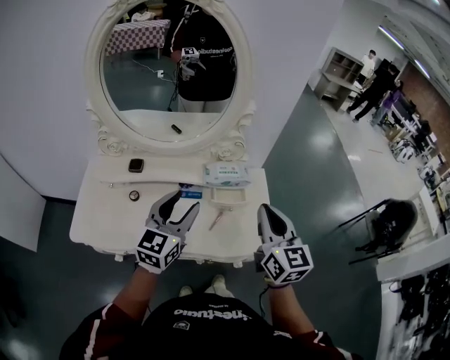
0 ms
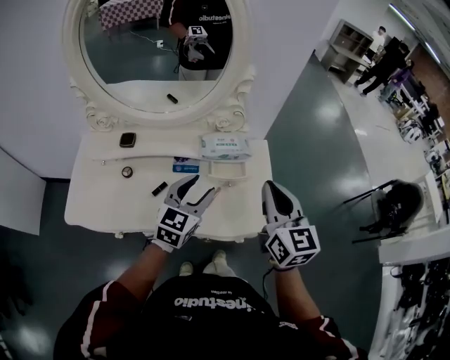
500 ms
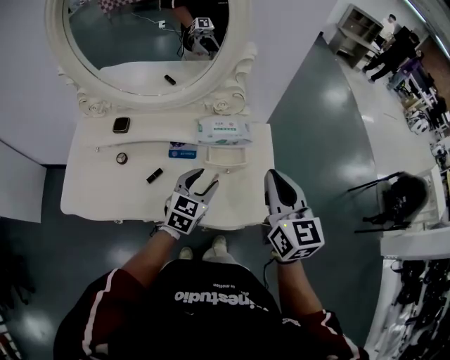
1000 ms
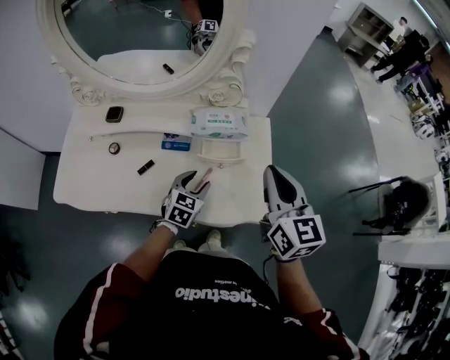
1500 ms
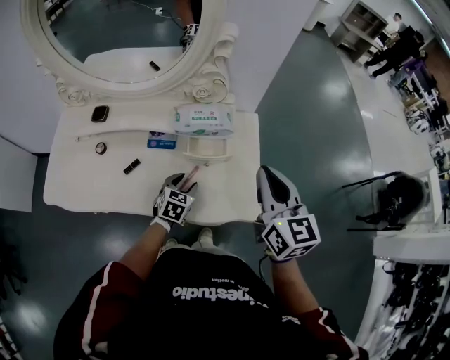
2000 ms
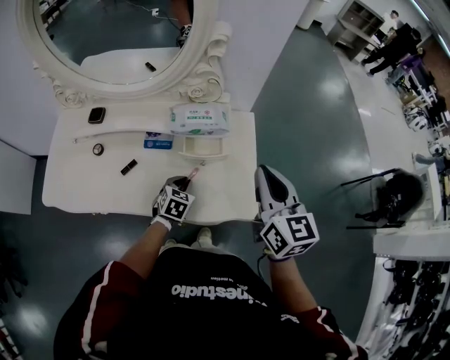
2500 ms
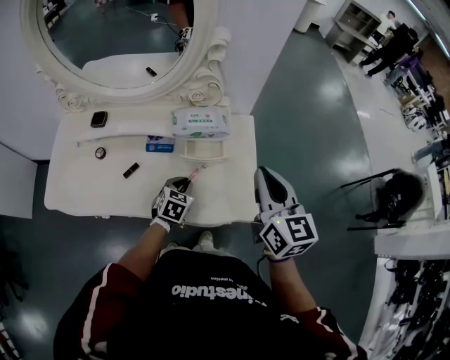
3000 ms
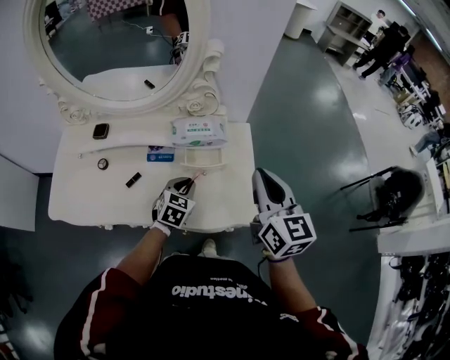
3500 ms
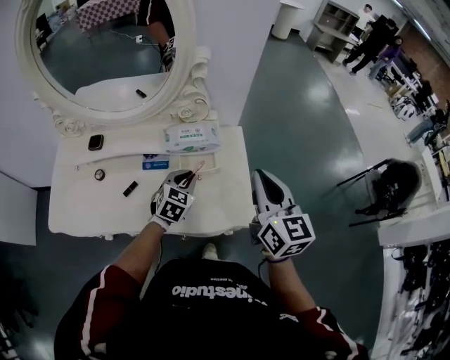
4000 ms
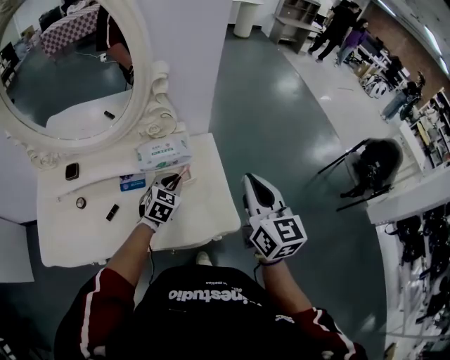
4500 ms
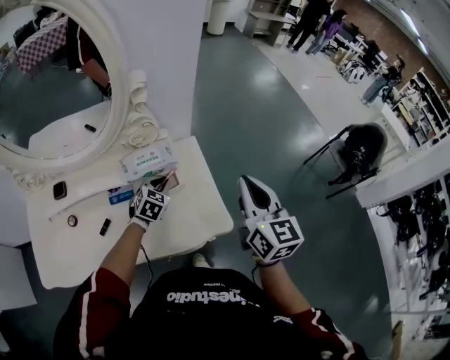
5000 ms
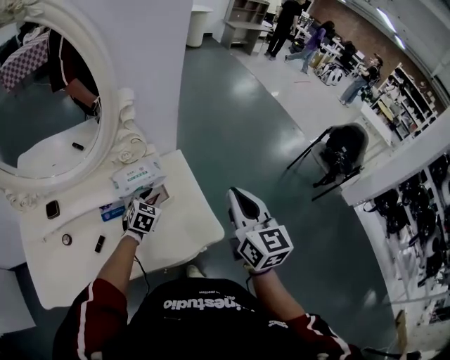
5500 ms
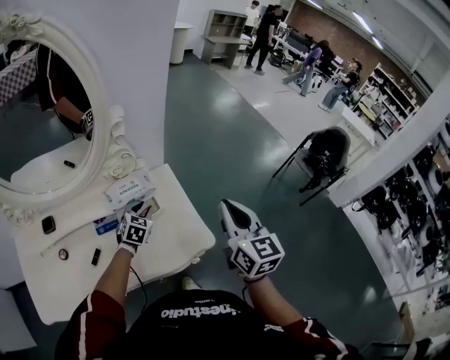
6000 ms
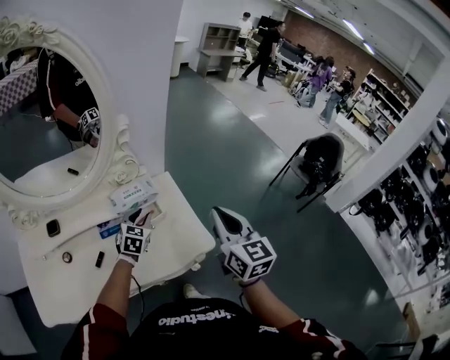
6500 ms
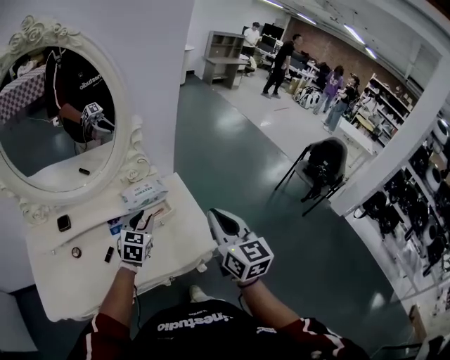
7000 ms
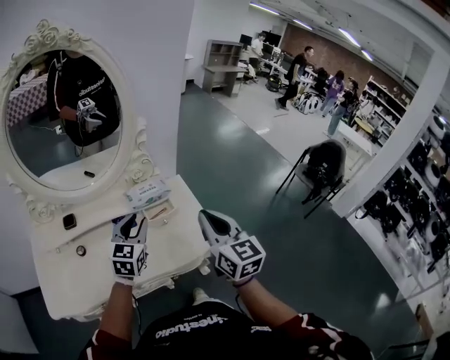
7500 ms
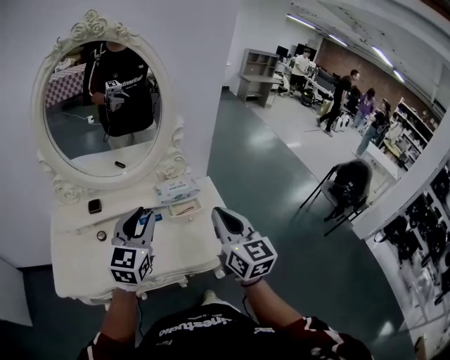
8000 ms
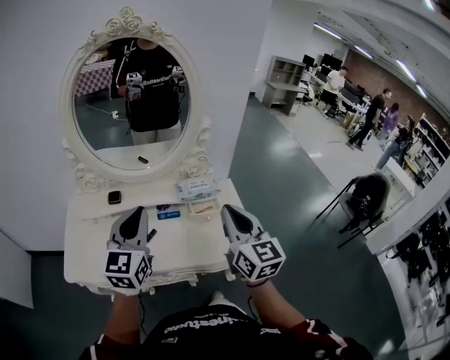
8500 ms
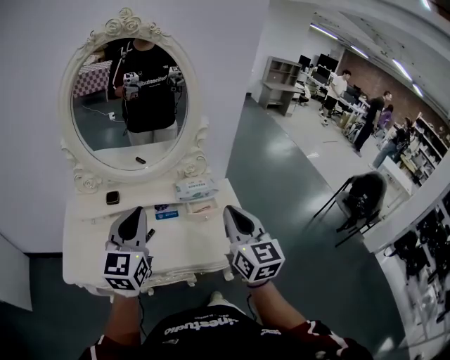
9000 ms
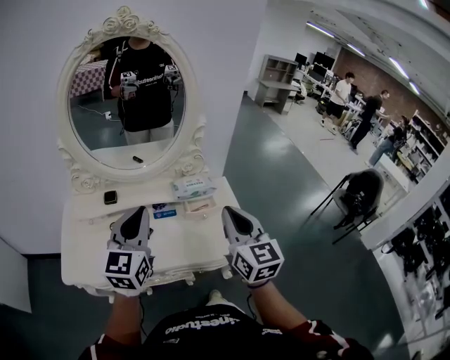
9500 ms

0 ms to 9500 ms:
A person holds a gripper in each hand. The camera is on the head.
0 ms to 2000 ms: The left gripper heads downward, covering roughly 35 cm, and points its fingers approximately 40 degrees further downward. The right gripper moves to the right, downward and forward, roughly 15 cm.
2000 ms to 4000 ms: The left gripper heads upward, covering about 10 cm, and closes.
4000 ms to 5500 ms: The left gripper heads forward, covering some 10 cm. The right gripper moves to the right, approximately 5 cm.
5500 ms to 7500 ms: The left gripper heads upward and backward, covering about 25 cm, and turns by some 30 degrees. The right gripper travels backward and to the left by roughly 15 cm.
7500 ms to 9500 ms: The left gripper goes roughly 20 cm upward, to the left and backward, turns by roughly 20 degrees, and closes; the right gripper travels to the left by roughly 5 cm.

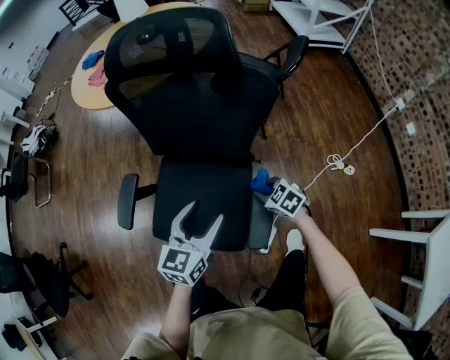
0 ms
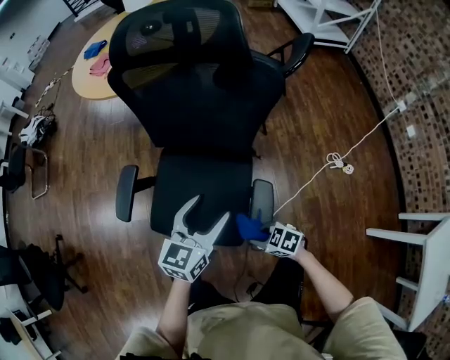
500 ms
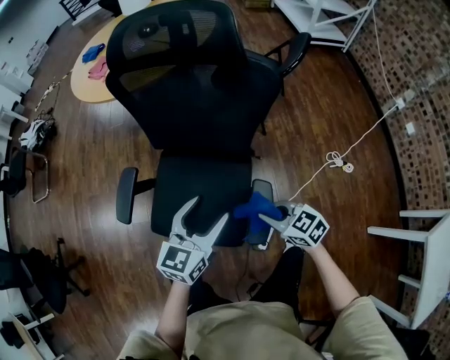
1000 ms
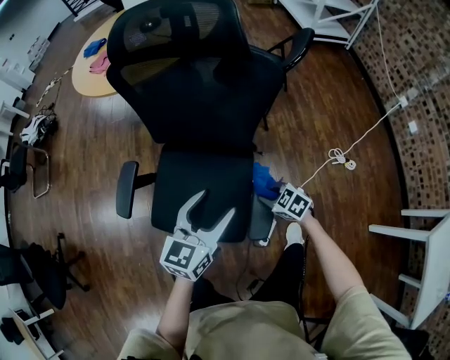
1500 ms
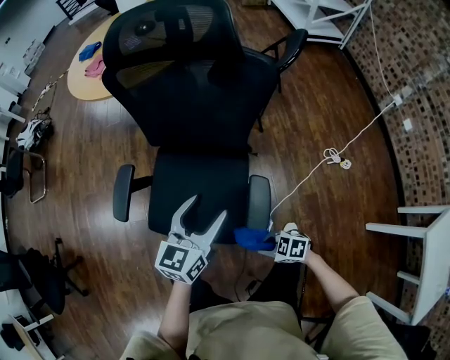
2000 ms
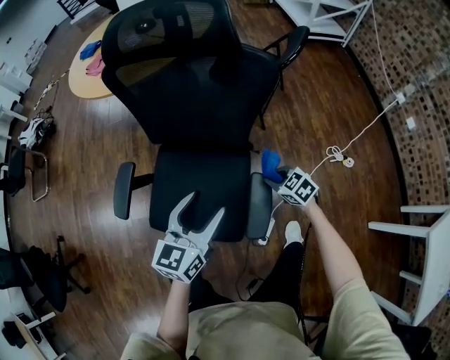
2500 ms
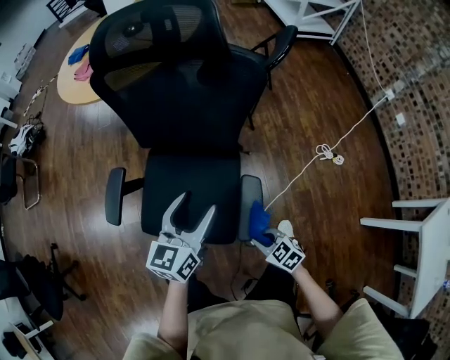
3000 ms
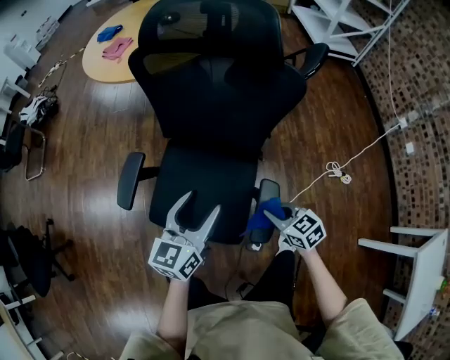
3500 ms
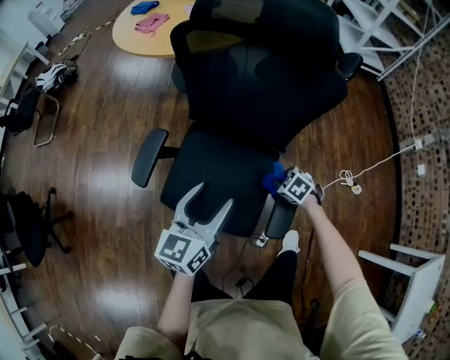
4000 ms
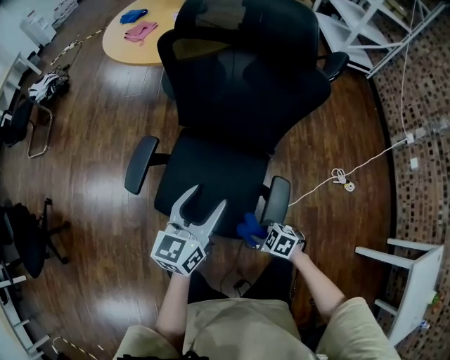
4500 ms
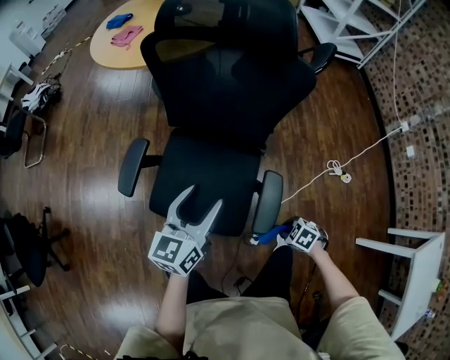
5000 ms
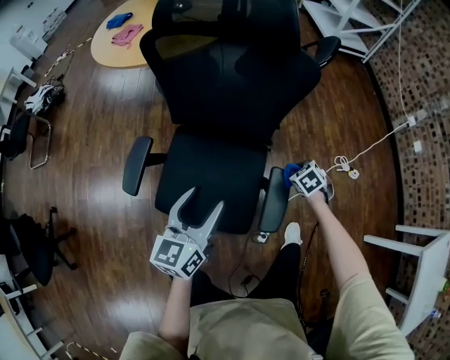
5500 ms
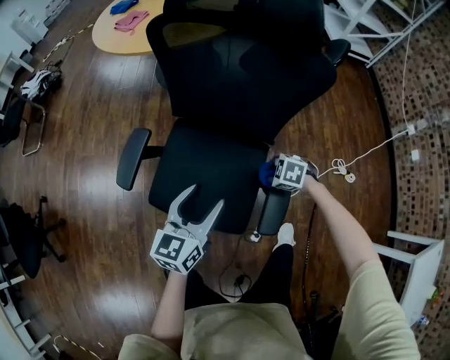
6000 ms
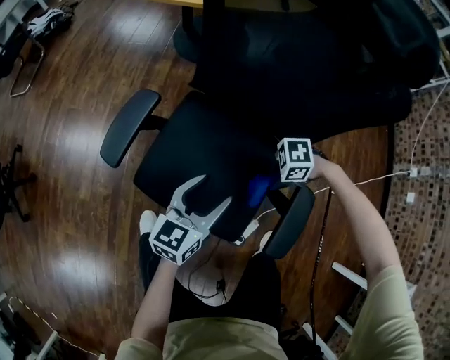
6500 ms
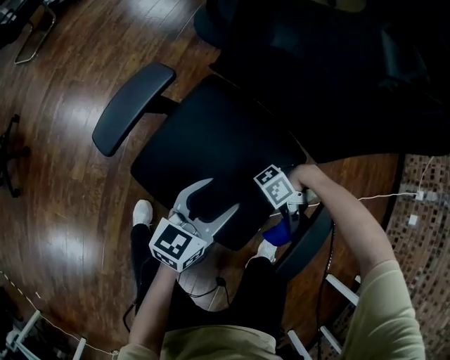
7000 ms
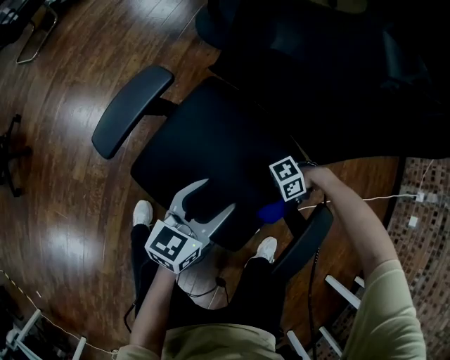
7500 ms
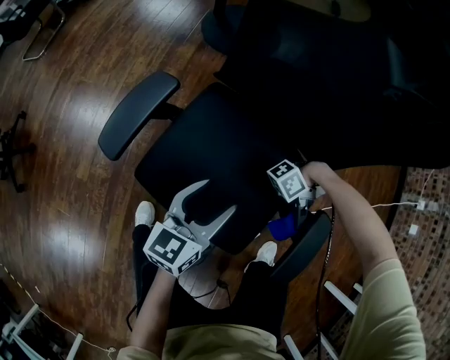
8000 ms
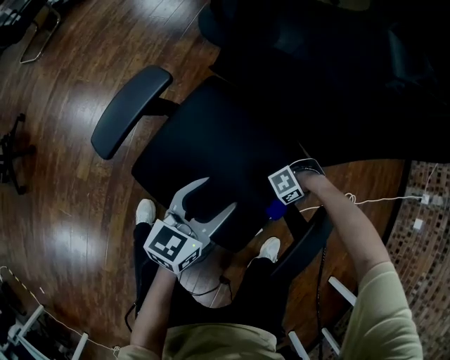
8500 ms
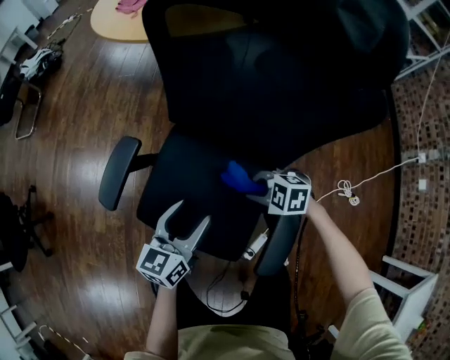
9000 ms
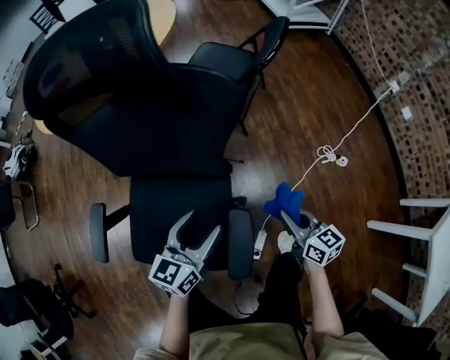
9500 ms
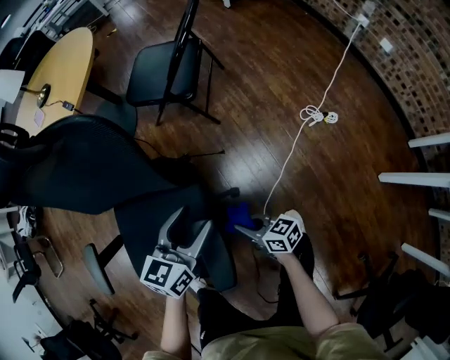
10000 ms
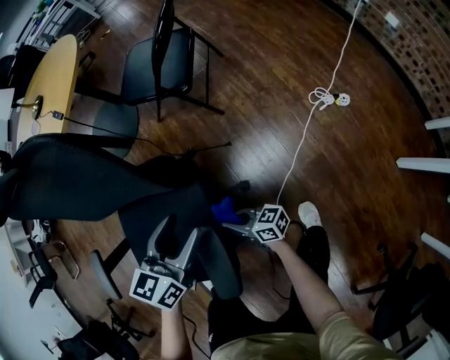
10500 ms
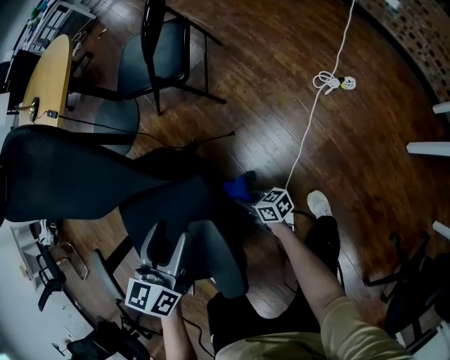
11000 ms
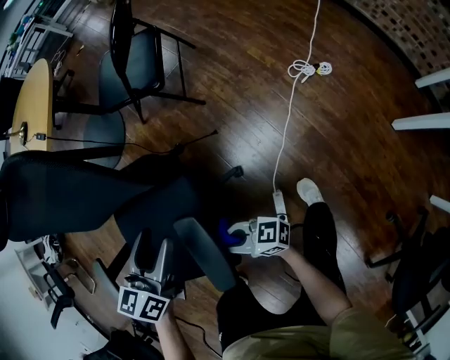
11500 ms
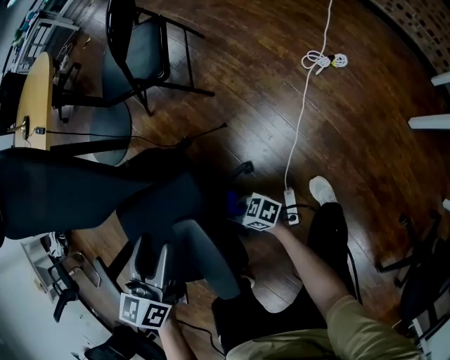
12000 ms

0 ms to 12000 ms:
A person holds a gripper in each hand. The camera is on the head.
0 ms to 2000 ms: The right gripper goes upward and returns, some 10 cm each way, and rotates approximately 30 degrees.
2000 ms to 4000 ms: The right gripper travels upward and back again, some 10 cm each way, and turns by approximately 30 degrees, while the left gripper ends up approximately 10 cm from where it was.
4000 ms to 6000 ms: The left gripper moves roughly 5 cm.
6000 ms to 8000 ms: The left gripper is displaced downward by approximately 15 cm. The right gripper angles its fingers upward, by about 70 degrees.
8000 ms to 10000 ms: The left gripper ends up roughly 35 cm from where it was, and changes its angle by approximately 40 degrees; the right gripper swings up and down, roughly 30 cm each way, with 2 reversals, and swivels about 160 degrees.
10000 ms to 12000 ms: The right gripper moves up and down over some 20 cm, changing direction 2 times, while the left gripper heads to the left, covering roughly 5 cm.

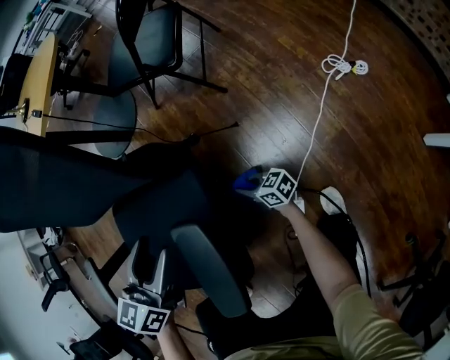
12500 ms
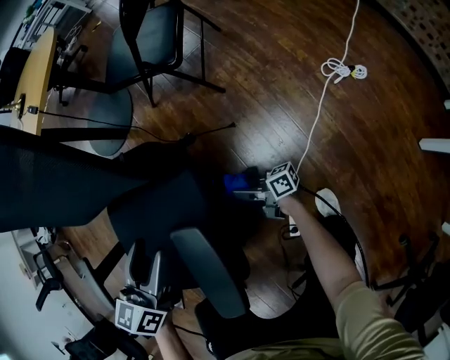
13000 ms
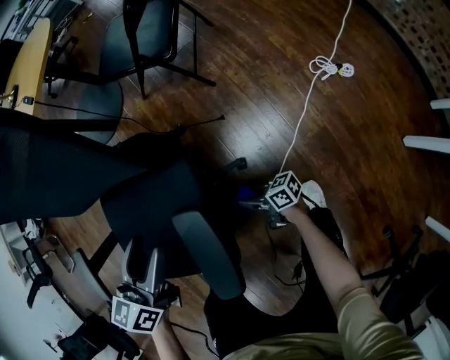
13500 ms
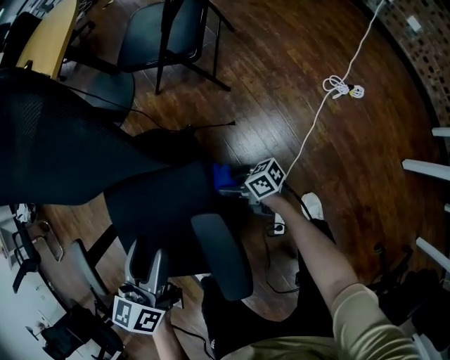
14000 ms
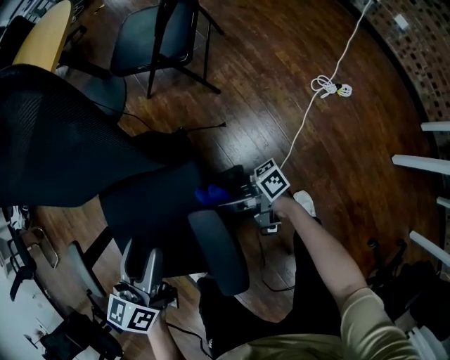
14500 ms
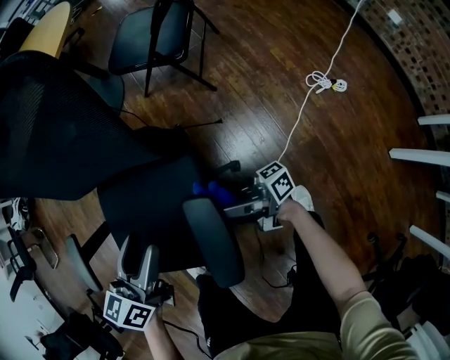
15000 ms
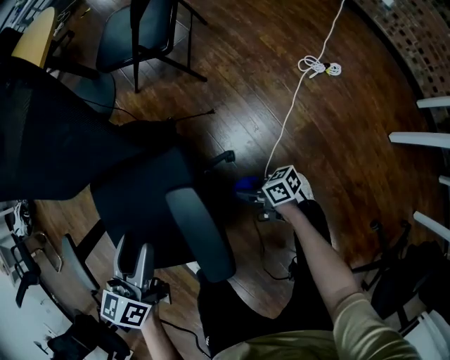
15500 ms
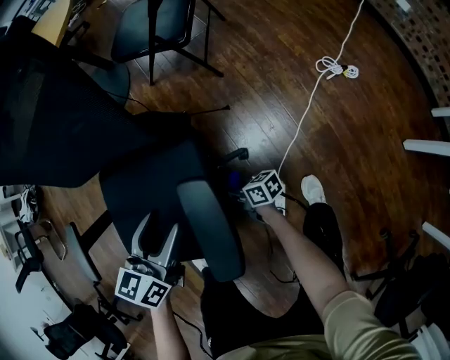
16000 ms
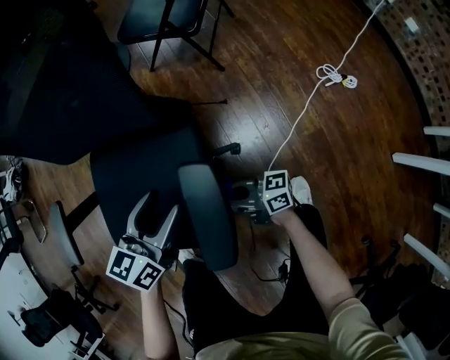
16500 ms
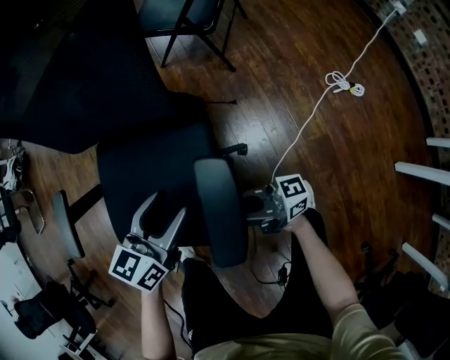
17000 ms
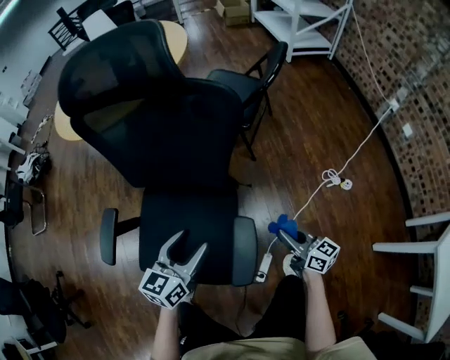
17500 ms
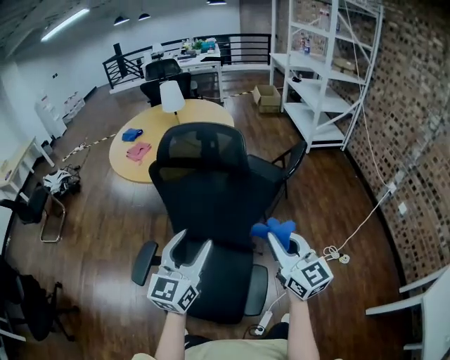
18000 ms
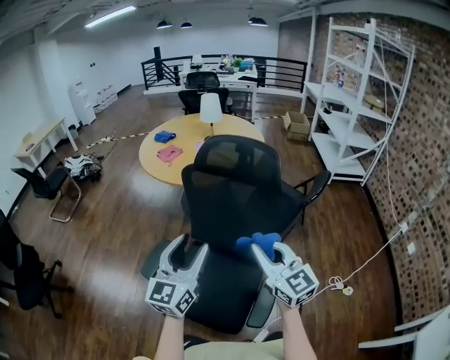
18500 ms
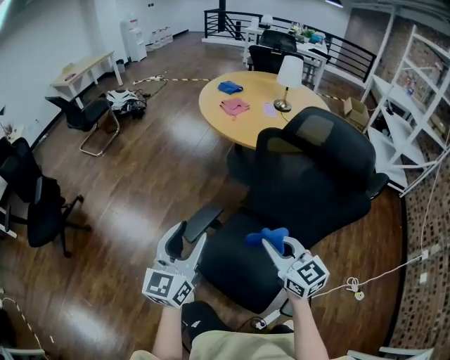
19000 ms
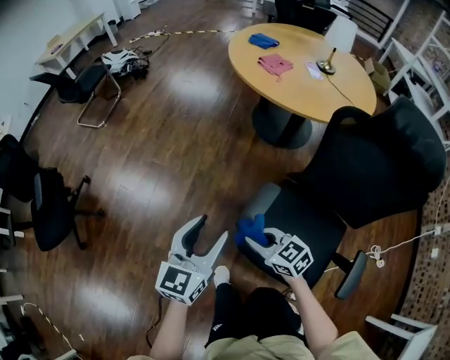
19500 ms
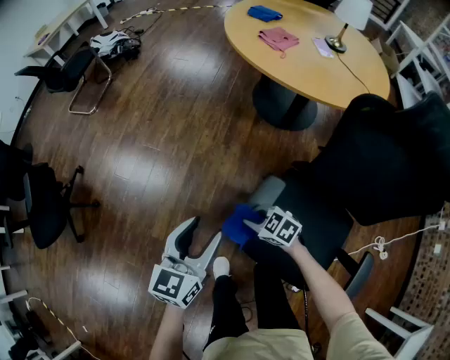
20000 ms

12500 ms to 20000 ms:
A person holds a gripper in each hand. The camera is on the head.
12500 ms to 14500 ms: The right gripper moves upward, about 20 cm, and points its fingers some 30 degrees further upward, while the left gripper moves about 5 cm.
14500 ms to 16500 ms: The left gripper travels downward by some 5 cm. Meanwhile the right gripper goes up and down, approximately 25 cm each way, reversing 2 times, and changes its angle by about 20 degrees.
16500 ms to 18000 ms: The grippers both shift upward by roughly 50 cm. The right gripper rotates around the line of its fingers by approximately 60 degrees, counterclockwise from behind. Meanwhile the left gripper turns by some 40 degrees.
18000 ms to 20000 ms: The two grippers travel together, about 50 cm. The right gripper tips its fingers downward by about 50 degrees. The left gripper turns by some 30 degrees.
